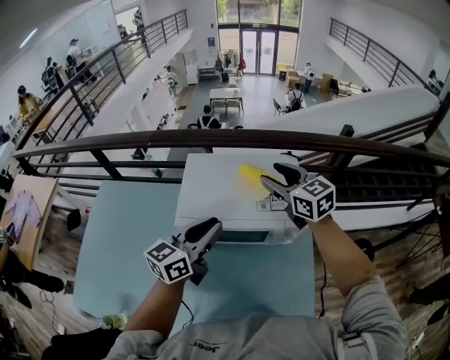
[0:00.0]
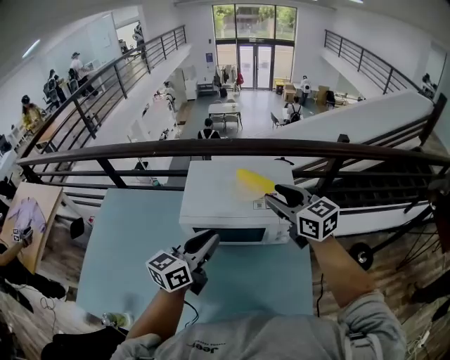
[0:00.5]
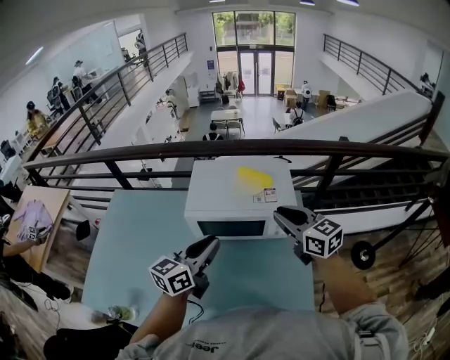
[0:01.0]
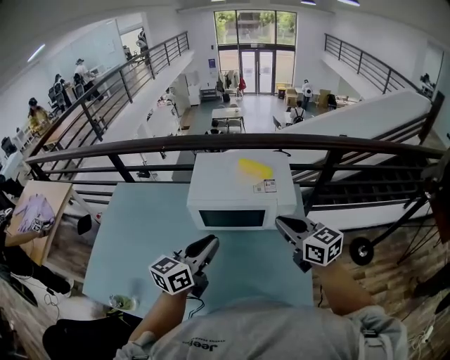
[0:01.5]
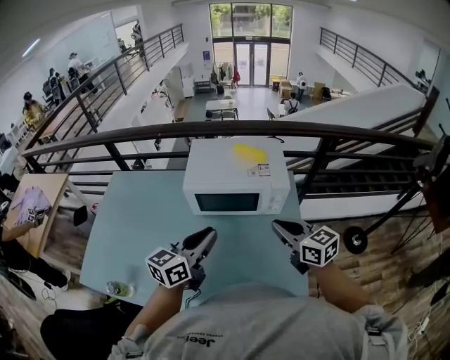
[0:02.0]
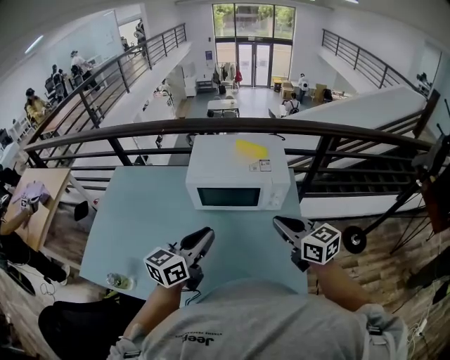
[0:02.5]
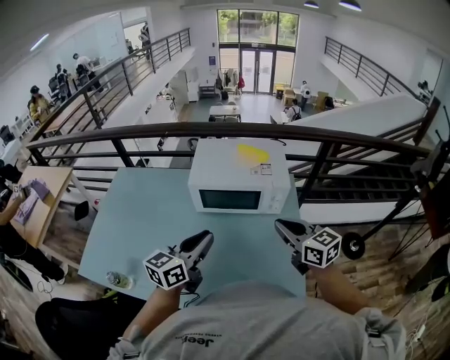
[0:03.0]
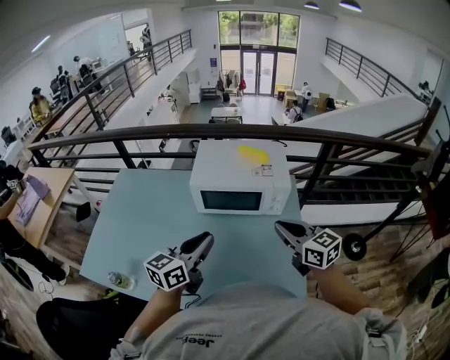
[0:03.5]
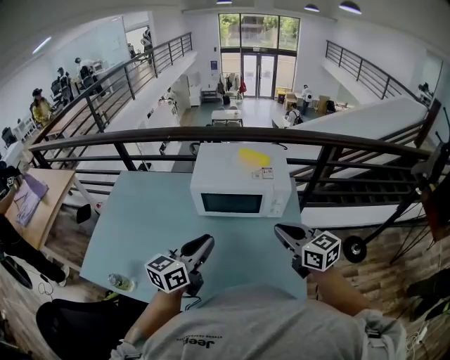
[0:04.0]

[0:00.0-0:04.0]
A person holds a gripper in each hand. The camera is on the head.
0:00.0 to 0:02.0: The right gripper travels backward by roughly 30 cm, and closes its fingers. The left gripper shifts roughly 20 cm backward.
0:02.0 to 0:04.0: The left gripper changes place by some 5 cm.

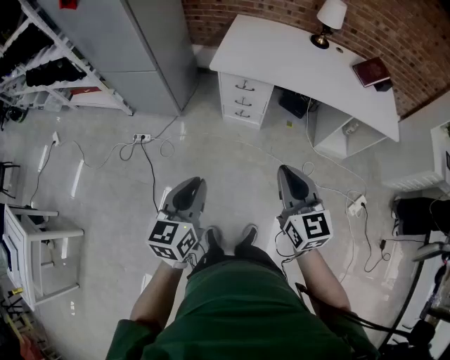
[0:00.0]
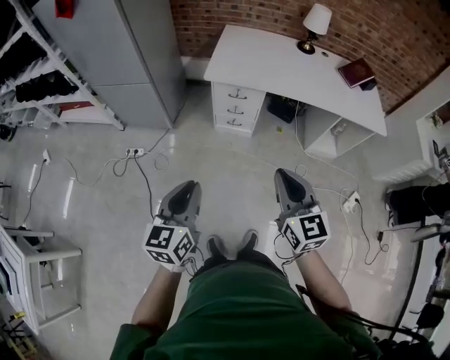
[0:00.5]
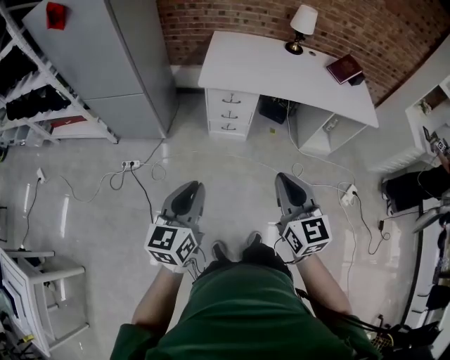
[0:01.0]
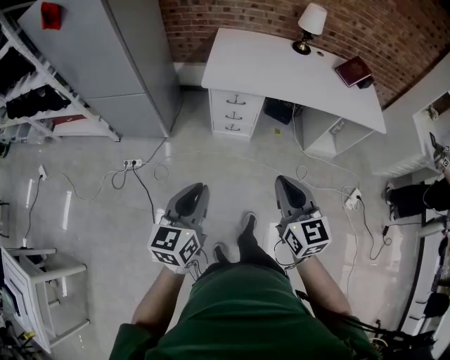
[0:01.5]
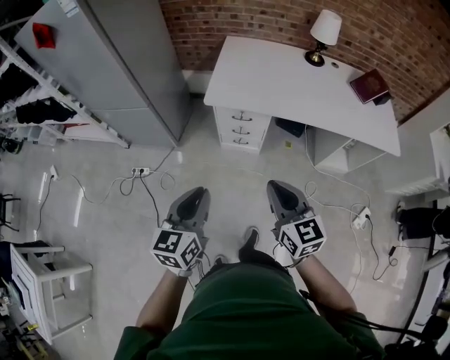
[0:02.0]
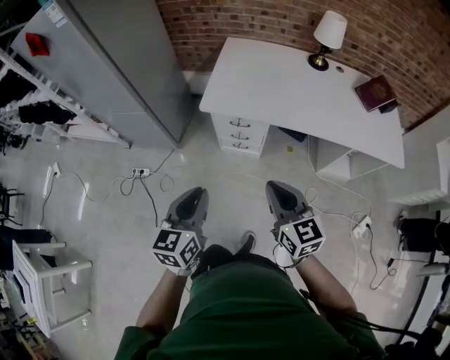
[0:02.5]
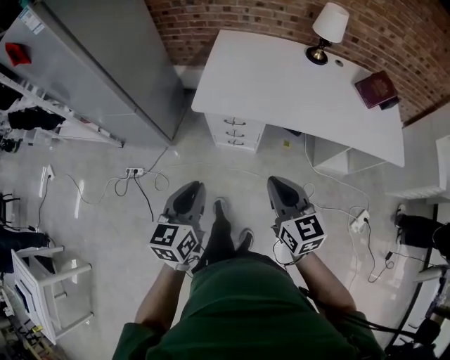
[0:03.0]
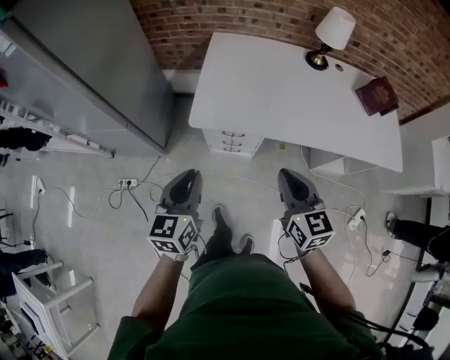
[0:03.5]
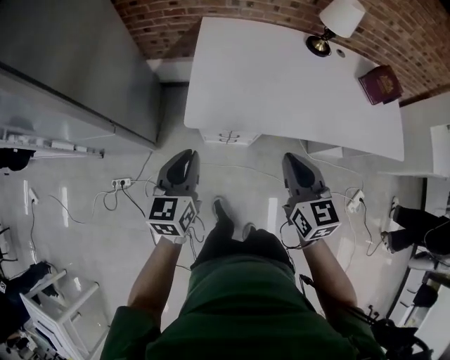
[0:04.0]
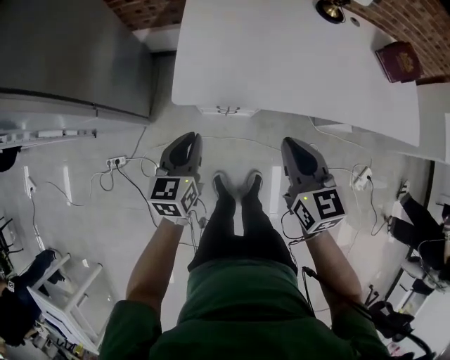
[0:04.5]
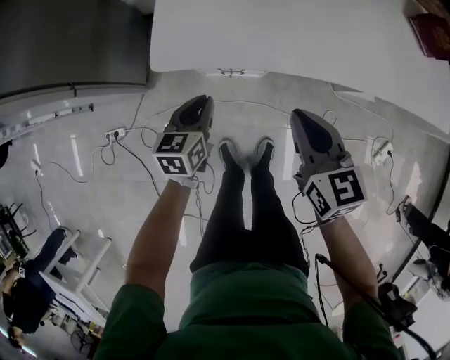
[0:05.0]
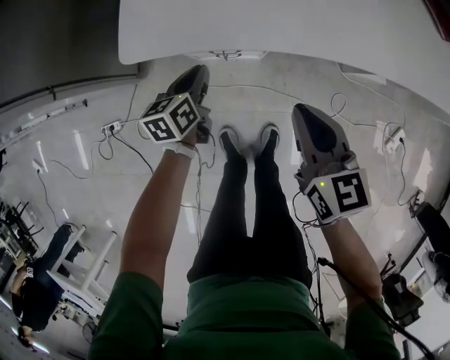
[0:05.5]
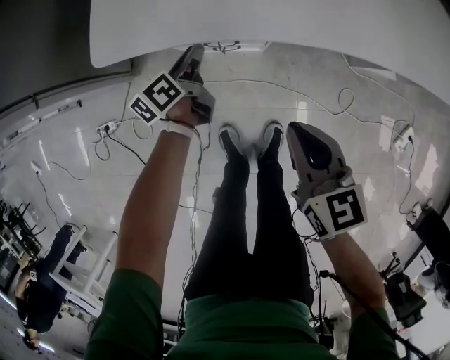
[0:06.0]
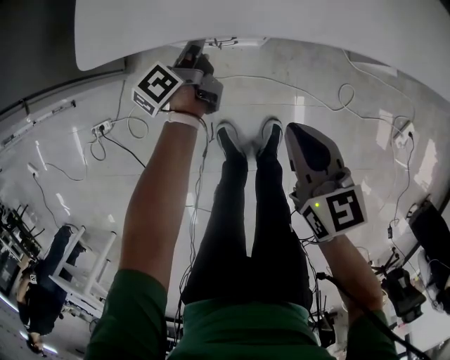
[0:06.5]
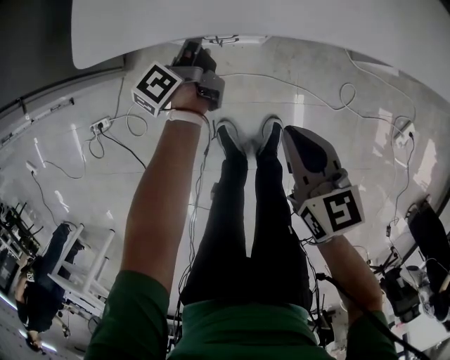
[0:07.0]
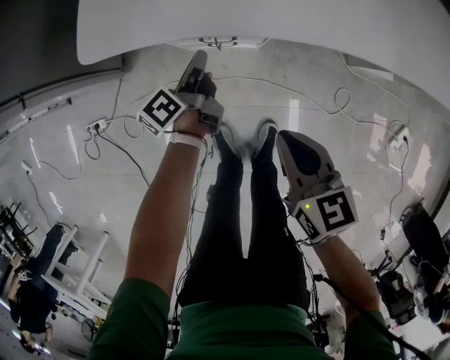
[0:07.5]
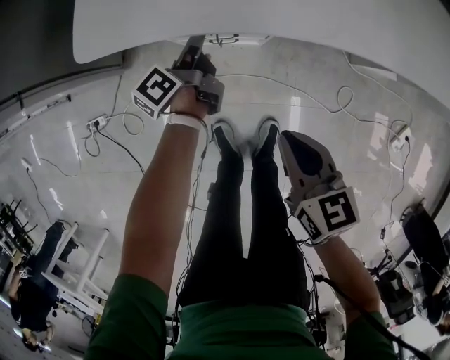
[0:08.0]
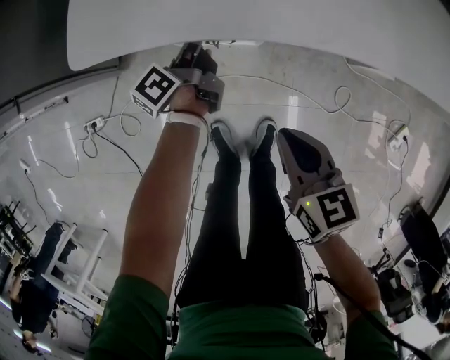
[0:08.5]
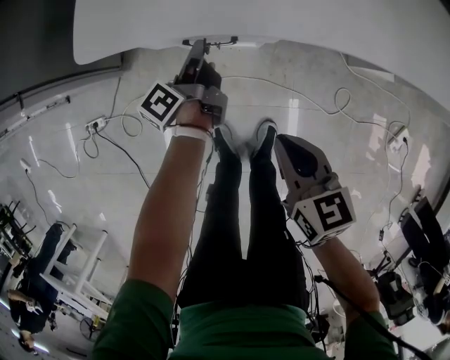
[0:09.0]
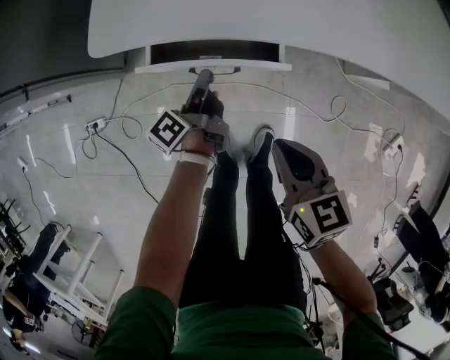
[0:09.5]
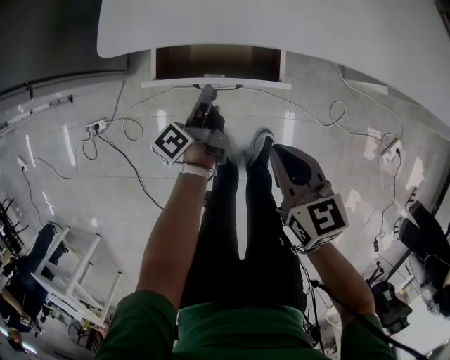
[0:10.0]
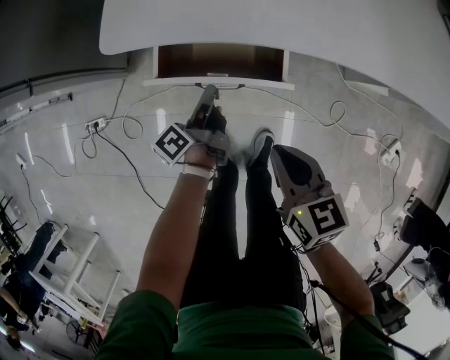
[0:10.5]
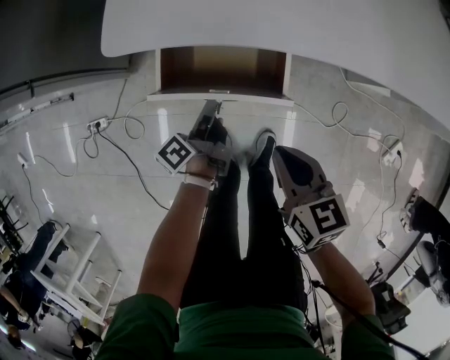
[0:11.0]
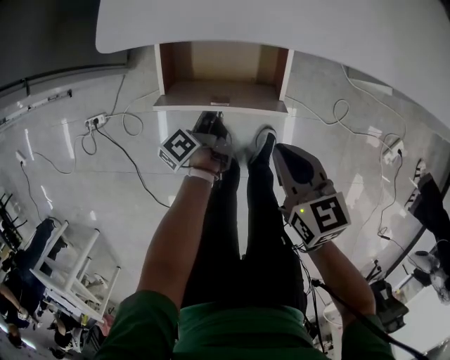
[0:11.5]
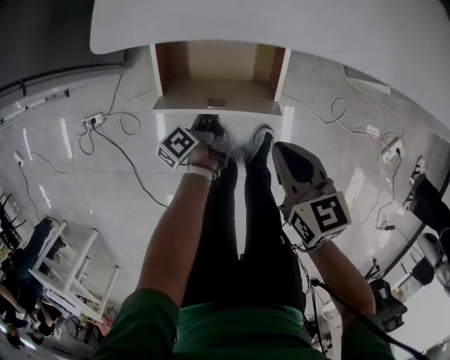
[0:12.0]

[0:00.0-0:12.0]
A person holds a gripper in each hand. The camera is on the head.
0:00.0 to 0:02.0: Both grippers travel together forward, roughly 15 cm.
0:02.0 to 0:04.0: The two grippers go approximately 30 cm forward.
0:04.0 to 0:06.0: Both grippers travel together downward, approximately 35 cm. The left gripper twists approximately 40 degrees counterclockwise, seen from behind.
0:06.0 to 0:08.0: The right gripper shifts by about 5 cm. Meanwhile the left gripper swivels about 20 degrees, and closes and opens again.
0:08.0 to 0:10.0: The left gripper goes some 10 cm backward.
0:10.0 to 0:12.0: The left gripper shifts approximately 10 cm downward.

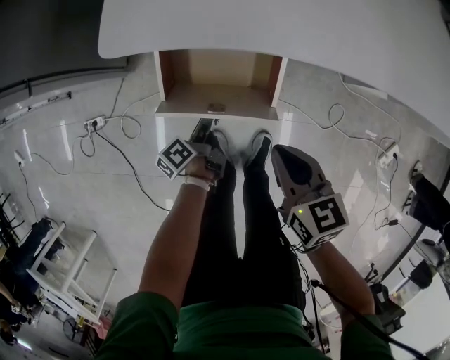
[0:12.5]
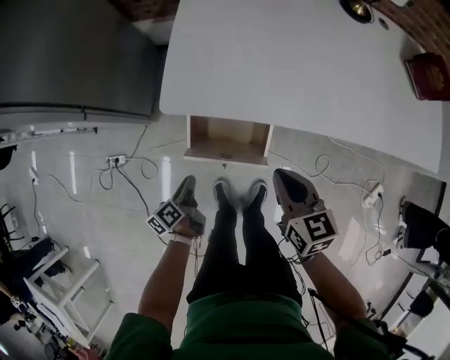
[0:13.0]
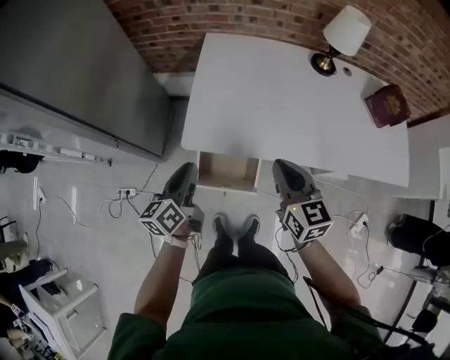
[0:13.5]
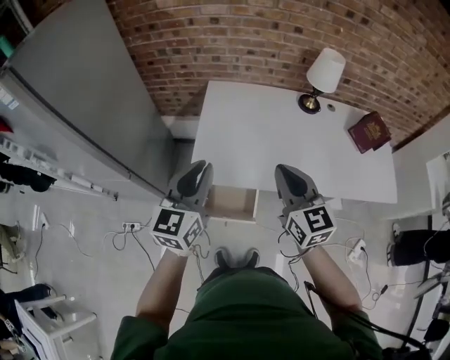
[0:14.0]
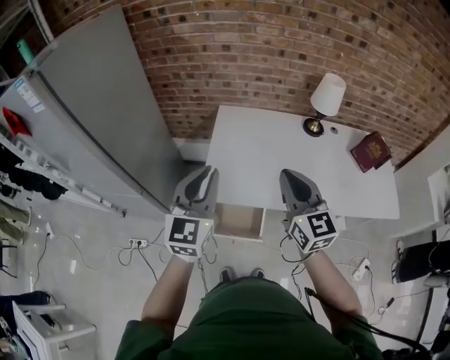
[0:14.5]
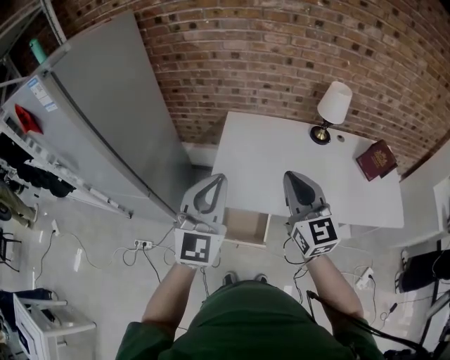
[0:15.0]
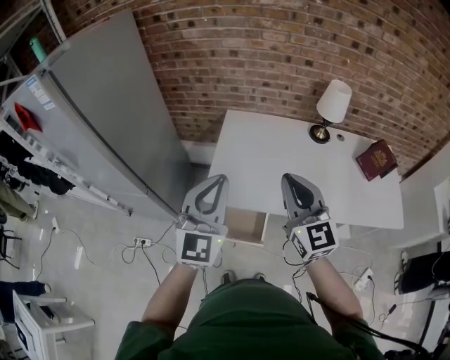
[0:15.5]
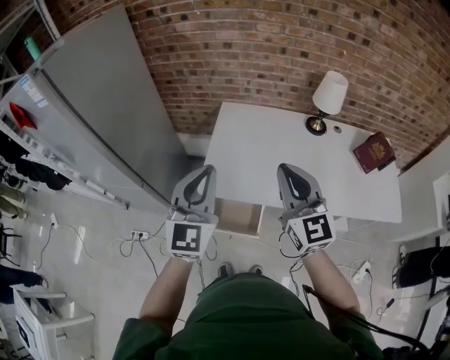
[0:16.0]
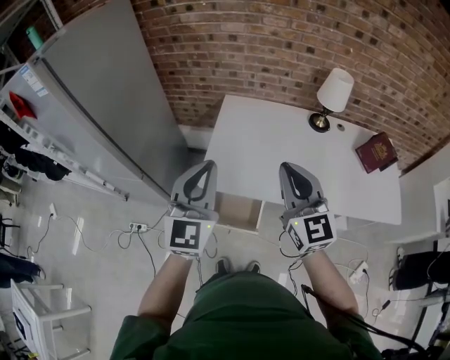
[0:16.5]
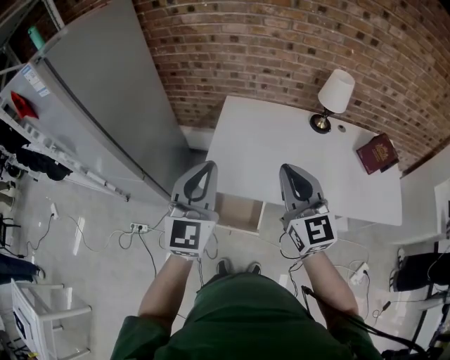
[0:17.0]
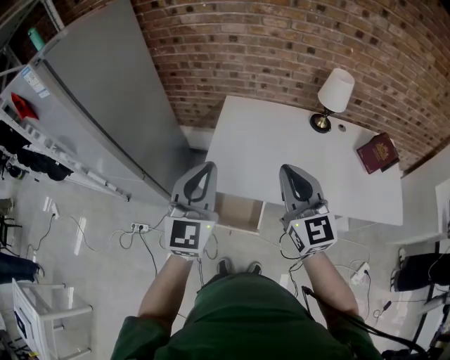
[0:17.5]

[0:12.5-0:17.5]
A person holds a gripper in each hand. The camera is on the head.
0:12.5 to 0:15.0: Both grippers move upward, about 70 cm. The right gripper tips its fingers upward by some 40 degrees, while the left gripper rotates around the line of its fingers by roughly 100 degrees, clockwise from behind, and closes up.
0:15.0 to 0:17.5: The grippers move only a little.

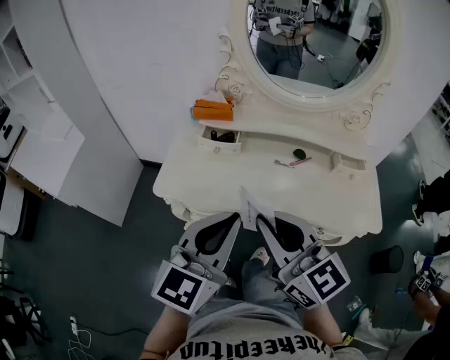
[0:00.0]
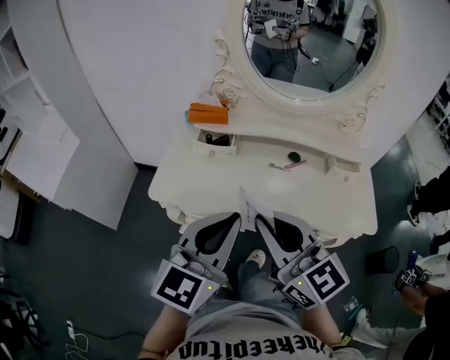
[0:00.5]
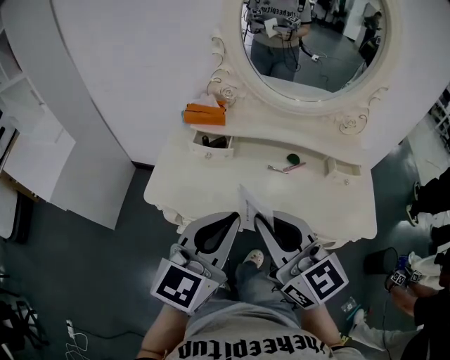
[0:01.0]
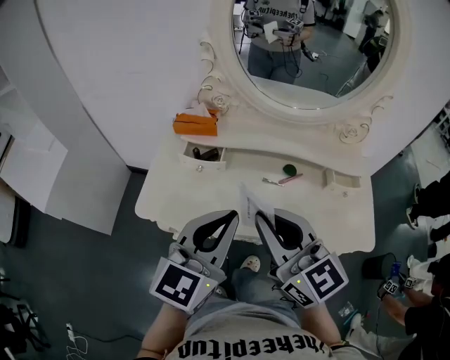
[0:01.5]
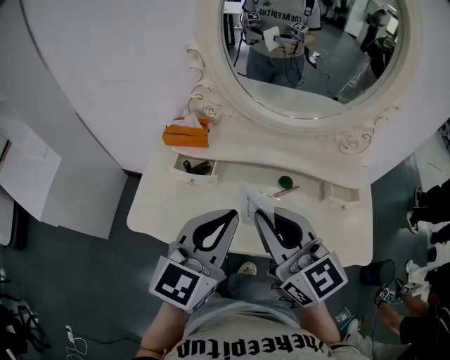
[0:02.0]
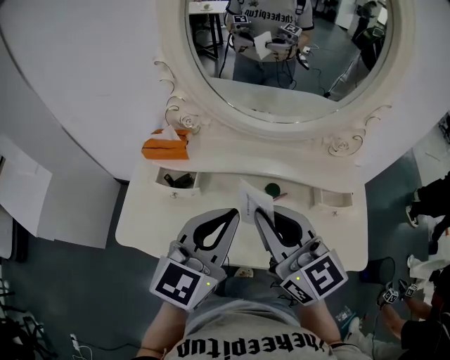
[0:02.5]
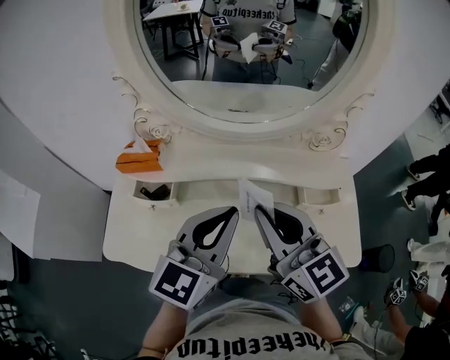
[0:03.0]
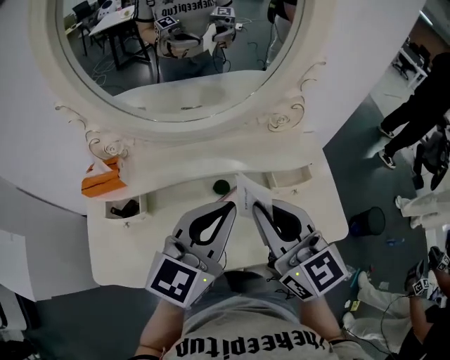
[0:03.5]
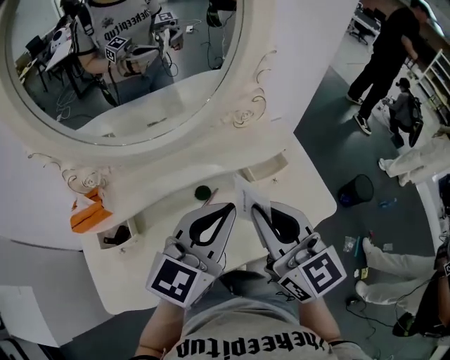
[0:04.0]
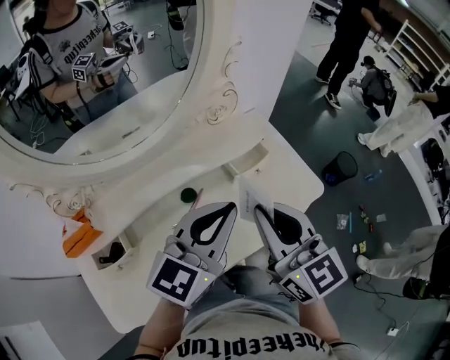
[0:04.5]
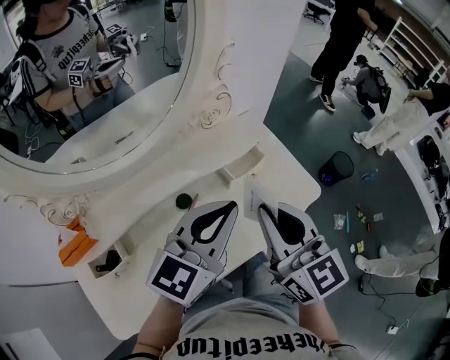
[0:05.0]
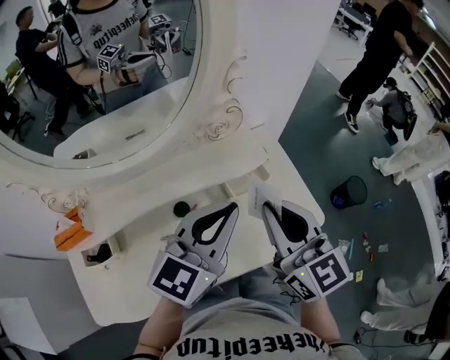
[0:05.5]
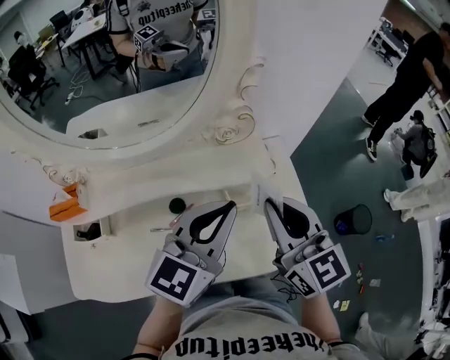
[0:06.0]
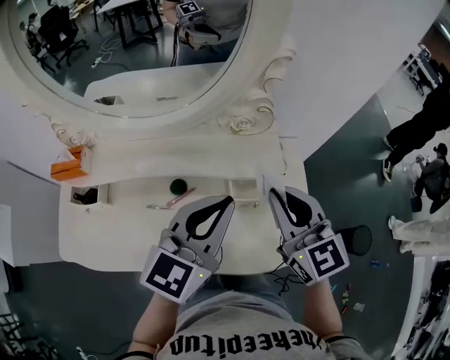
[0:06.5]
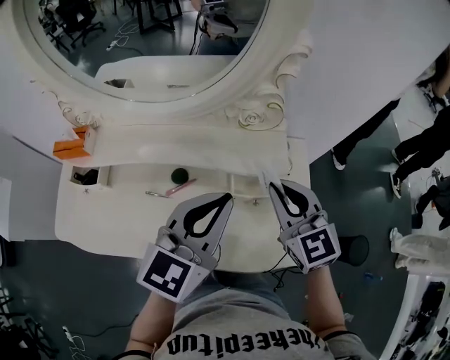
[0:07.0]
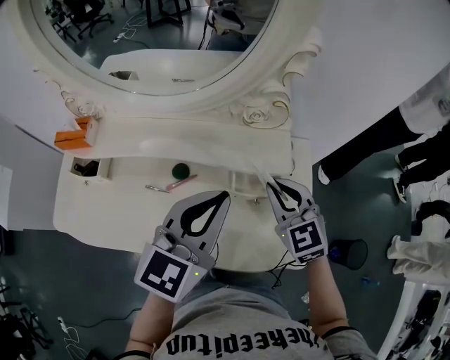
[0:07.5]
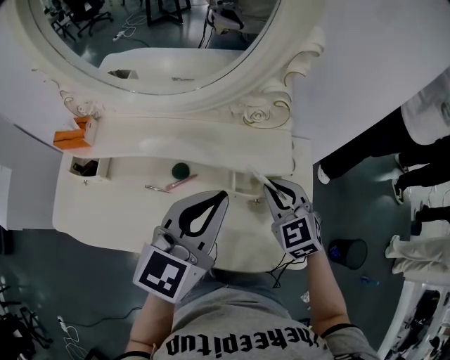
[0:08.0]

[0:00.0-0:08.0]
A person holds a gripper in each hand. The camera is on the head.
0:00.0 to 0:02.0: Both grippers move forward and to the right, about 15 cm.
0:02.0 to 0:04.0: The left gripper shifts by some 20 cm, and turns by about 40 degrees. The right gripper moves some 20 cm, and swivels some 40 degrees.
0:04.0 to 0:06.0: The two grippers go about 15 cm forward and to the right.
0:06.0 to 0:08.0: The right gripper heads downward and forward, covering some 20 cm, and turns by roughly 40 degrees. Meanwhile the left gripper swivels some 20 degrees.
